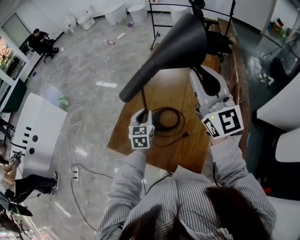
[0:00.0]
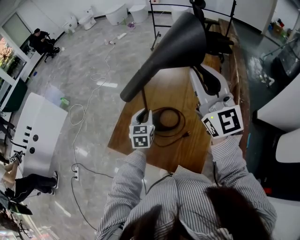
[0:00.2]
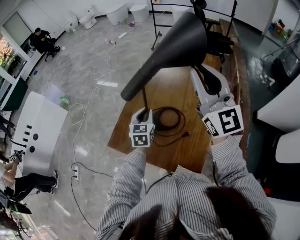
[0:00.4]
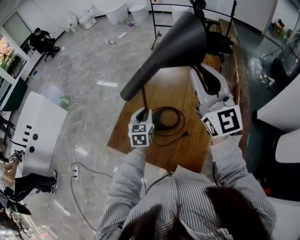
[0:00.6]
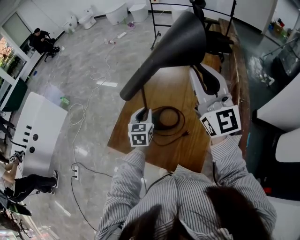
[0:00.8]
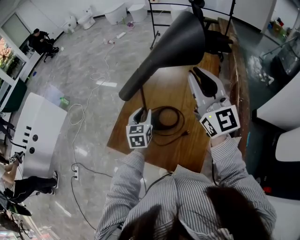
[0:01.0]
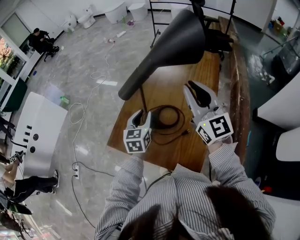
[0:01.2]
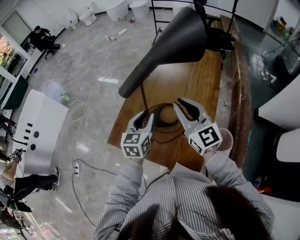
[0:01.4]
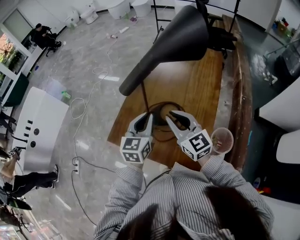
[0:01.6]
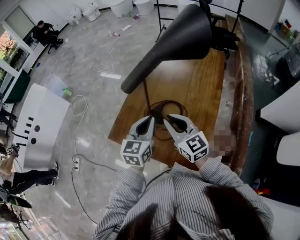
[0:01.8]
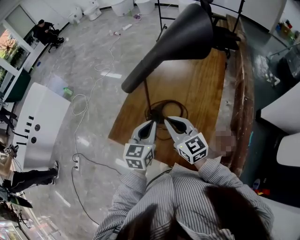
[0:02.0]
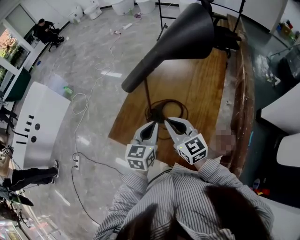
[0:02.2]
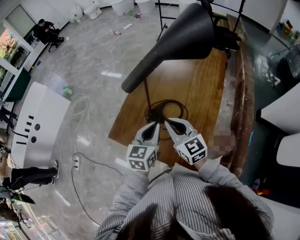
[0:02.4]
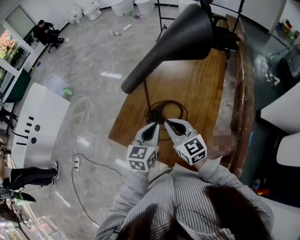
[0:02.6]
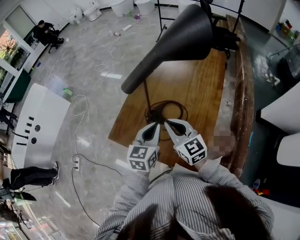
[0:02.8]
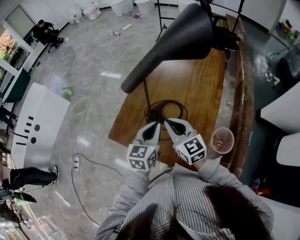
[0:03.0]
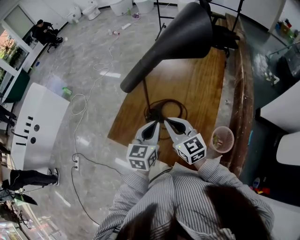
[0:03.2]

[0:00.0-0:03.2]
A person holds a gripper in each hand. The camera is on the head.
0:00.0 to 0:01.6: The left gripper shifts roughly 10 cm backward and upward. The right gripper travels downward and to the left by approximately 25 cm, and swivels roughly 30 degrees.
0:01.6 to 0:03.2: The grippers stay close to where they were, moving slightly.

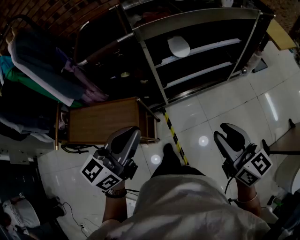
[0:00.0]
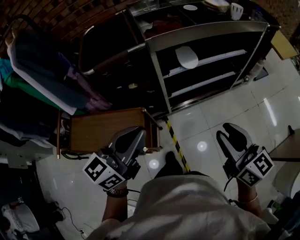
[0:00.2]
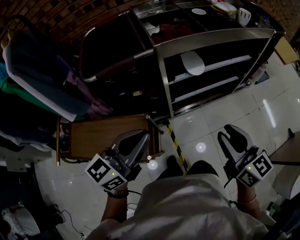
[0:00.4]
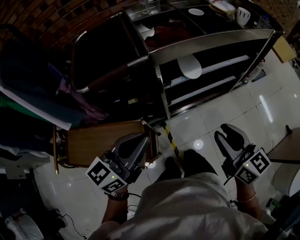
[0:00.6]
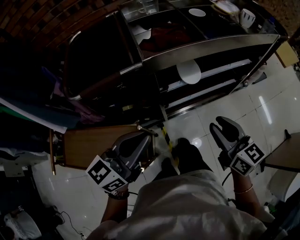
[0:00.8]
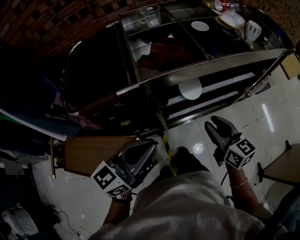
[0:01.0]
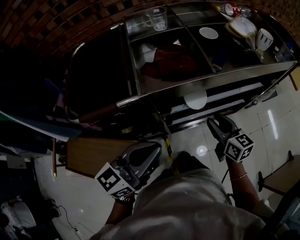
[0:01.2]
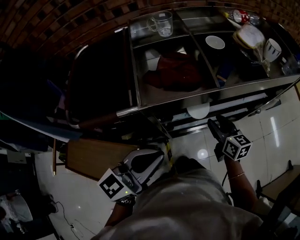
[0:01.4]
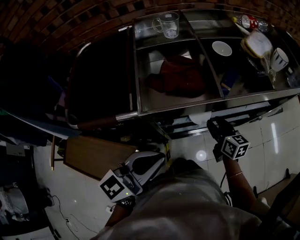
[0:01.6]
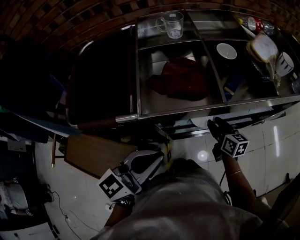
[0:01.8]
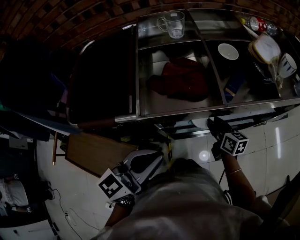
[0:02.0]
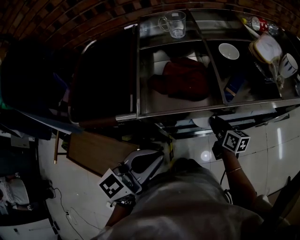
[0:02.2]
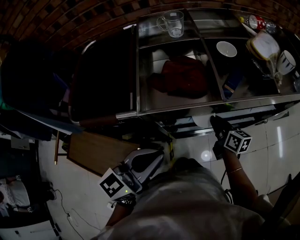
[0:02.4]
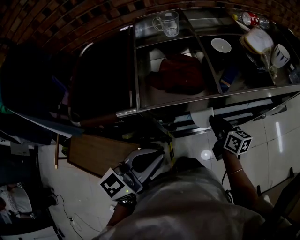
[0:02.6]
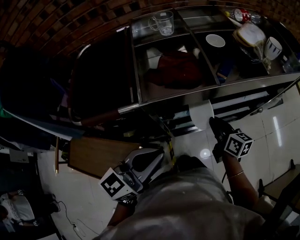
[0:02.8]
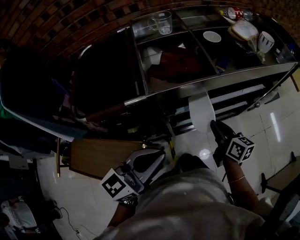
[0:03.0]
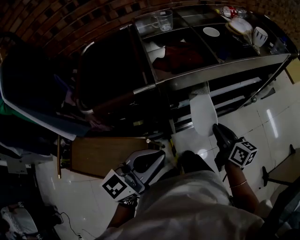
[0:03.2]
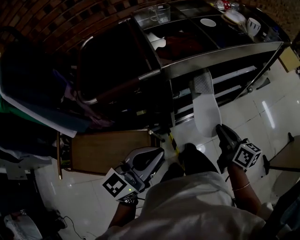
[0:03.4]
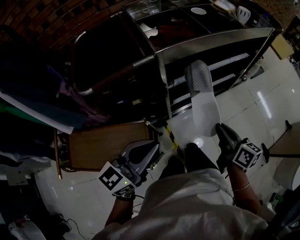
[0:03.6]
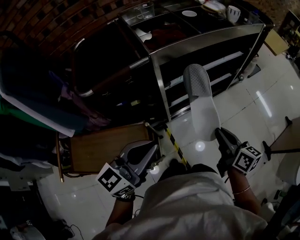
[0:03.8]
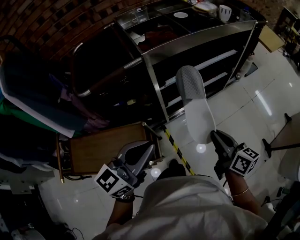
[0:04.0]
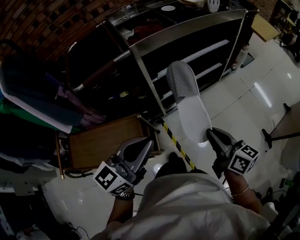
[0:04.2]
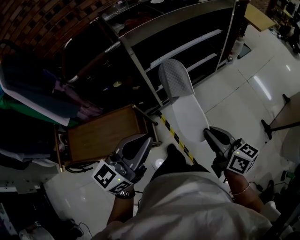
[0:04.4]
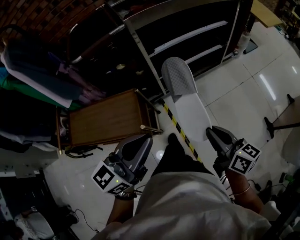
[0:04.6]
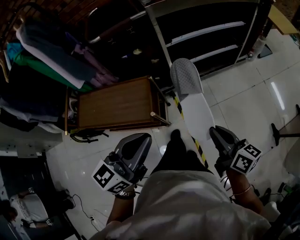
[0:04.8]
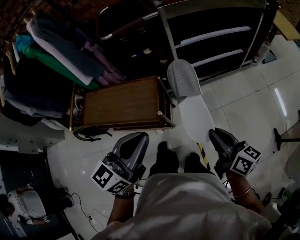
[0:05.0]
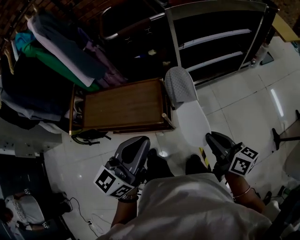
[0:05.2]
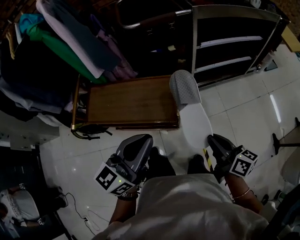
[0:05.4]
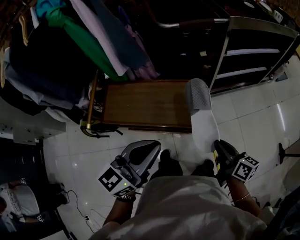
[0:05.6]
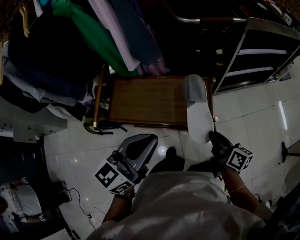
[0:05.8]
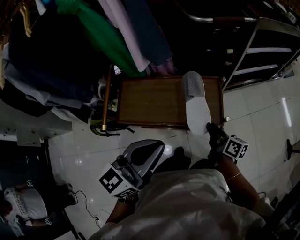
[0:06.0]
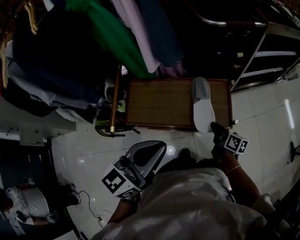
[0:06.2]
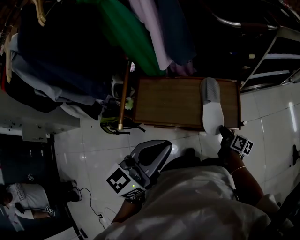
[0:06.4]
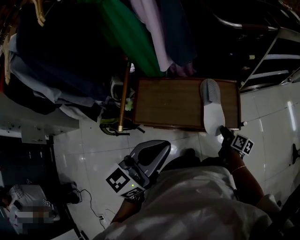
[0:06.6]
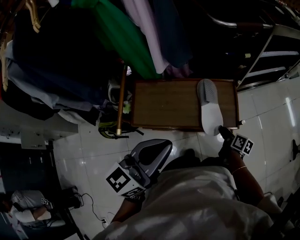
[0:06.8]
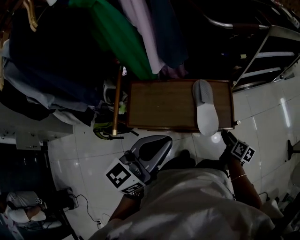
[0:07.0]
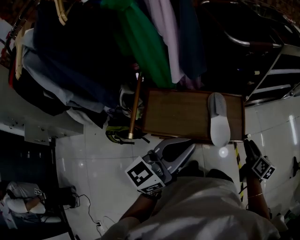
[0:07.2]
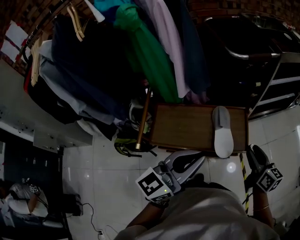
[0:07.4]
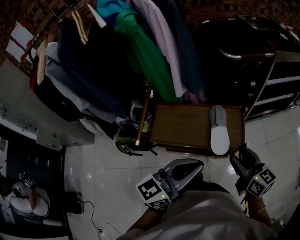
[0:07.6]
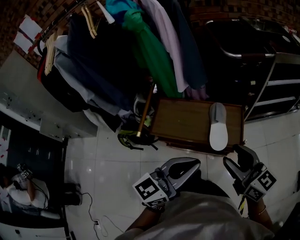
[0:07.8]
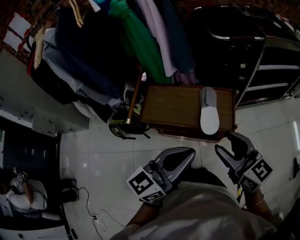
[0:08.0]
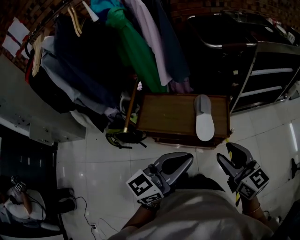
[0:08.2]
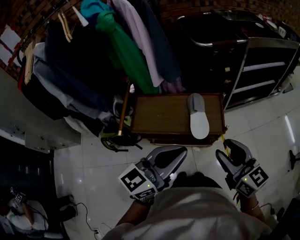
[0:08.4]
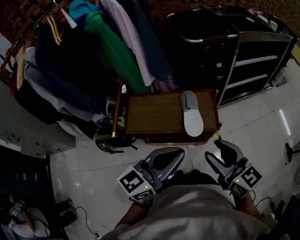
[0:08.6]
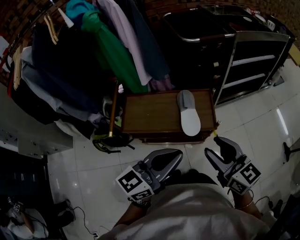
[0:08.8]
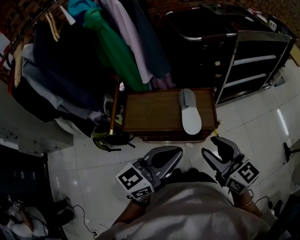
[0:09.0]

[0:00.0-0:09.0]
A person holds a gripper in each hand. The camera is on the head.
0:00.0 to 0:01.6: The left gripper goes approximately 25 cm forward; the right gripper goes approximately 50 cm forward and downward.
0:01.6 to 0:03.0: The left gripper moves backward, some 5 cm. The right gripper shifts roughly 10 cm backward and upward, and closes its fingers.
0:03.0 to 0:04.4: The left gripper travels backward by approximately 20 cm. Meanwhile the right gripper travels backward by roughly 35 cm.
0:04.4 to 0:06.0: The pair of grippers is taken to the left, roughly 40 cm. The right gripper shifts approximately 15 cm downward, and turns by roughly 20 degrees.
0:06.0 to 0:07.6: The right gripper heads upward, covering some 20 cm, swivels roughly 30 degrees, and opens its fingers, while the left gripper moves some 10 cm to the left and comes back.
0:07.6 to 0:09.0: The left gripper ends up roughly 5 cm from where it was. The right gripper goes approximately 10 cm backward and upward.

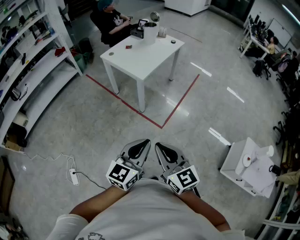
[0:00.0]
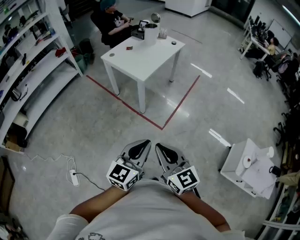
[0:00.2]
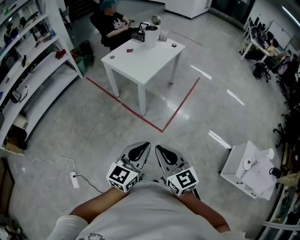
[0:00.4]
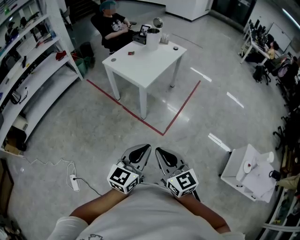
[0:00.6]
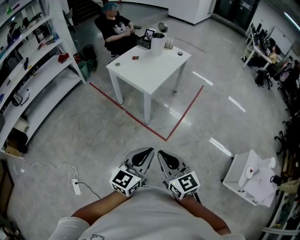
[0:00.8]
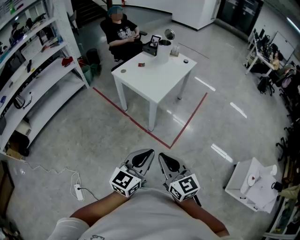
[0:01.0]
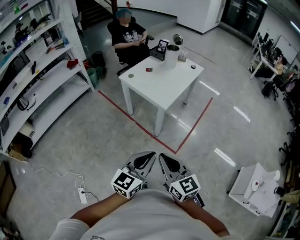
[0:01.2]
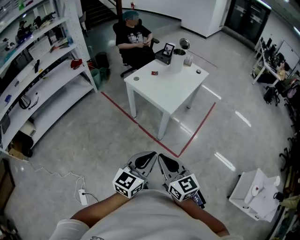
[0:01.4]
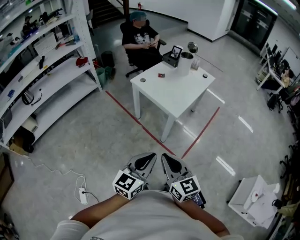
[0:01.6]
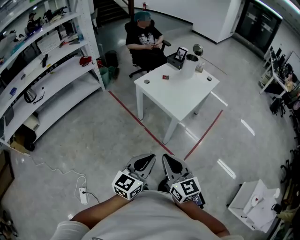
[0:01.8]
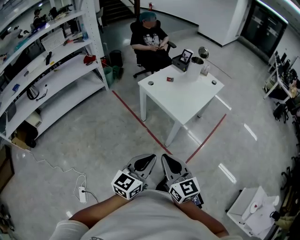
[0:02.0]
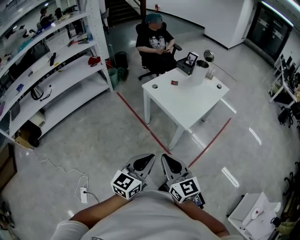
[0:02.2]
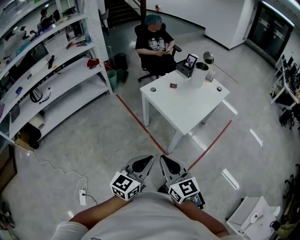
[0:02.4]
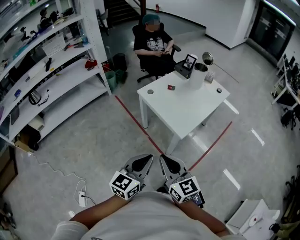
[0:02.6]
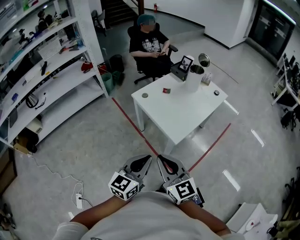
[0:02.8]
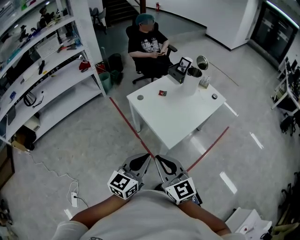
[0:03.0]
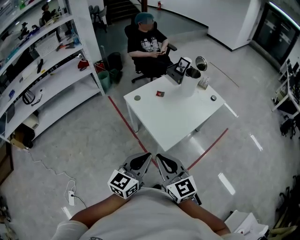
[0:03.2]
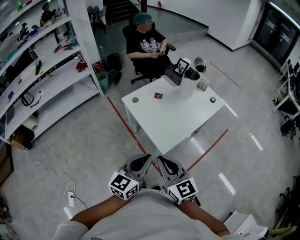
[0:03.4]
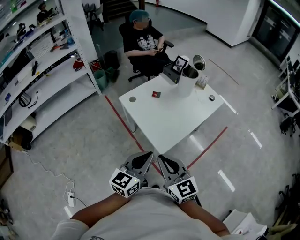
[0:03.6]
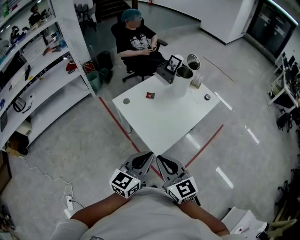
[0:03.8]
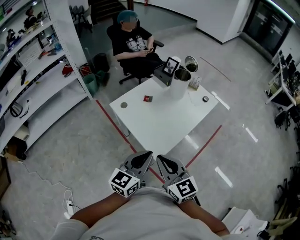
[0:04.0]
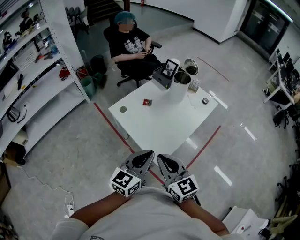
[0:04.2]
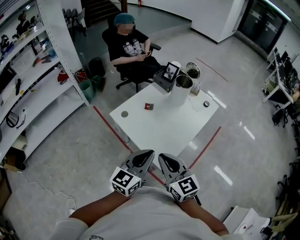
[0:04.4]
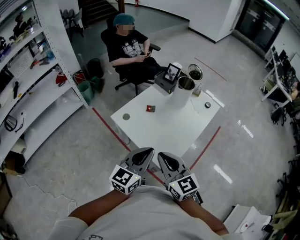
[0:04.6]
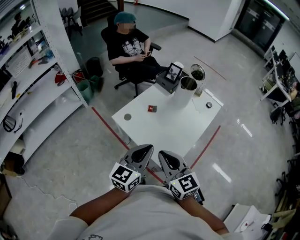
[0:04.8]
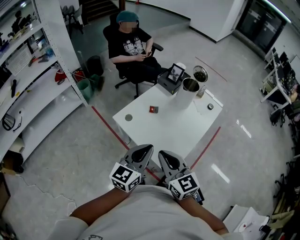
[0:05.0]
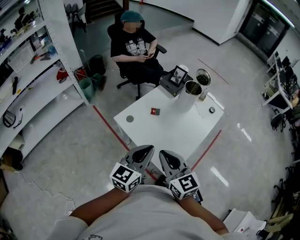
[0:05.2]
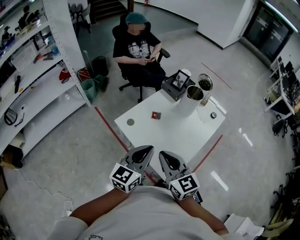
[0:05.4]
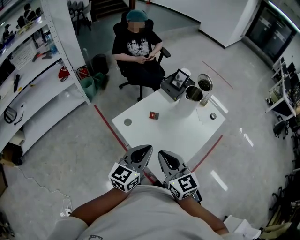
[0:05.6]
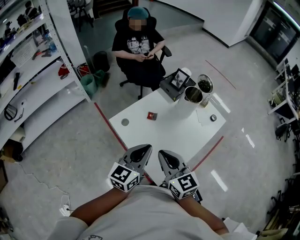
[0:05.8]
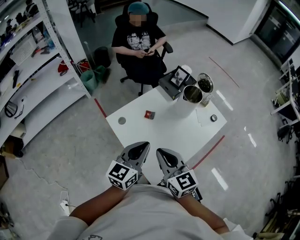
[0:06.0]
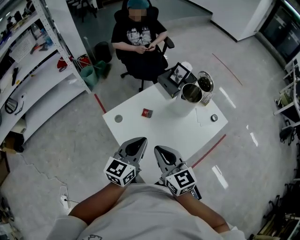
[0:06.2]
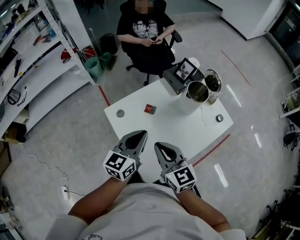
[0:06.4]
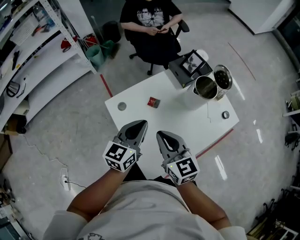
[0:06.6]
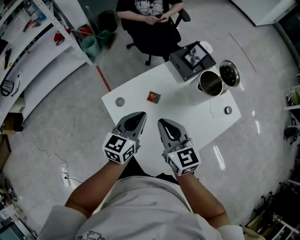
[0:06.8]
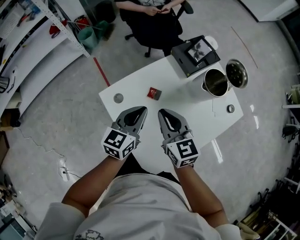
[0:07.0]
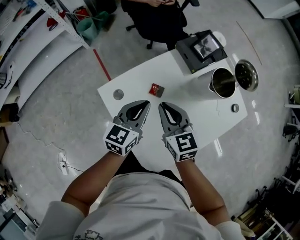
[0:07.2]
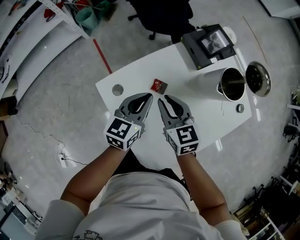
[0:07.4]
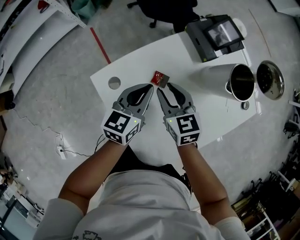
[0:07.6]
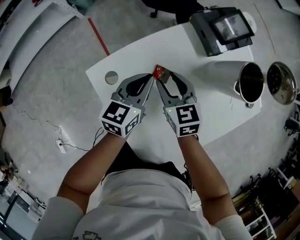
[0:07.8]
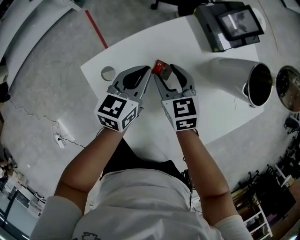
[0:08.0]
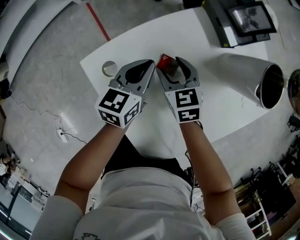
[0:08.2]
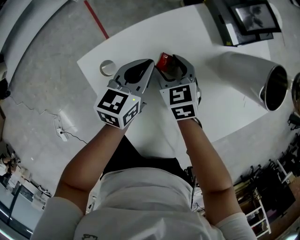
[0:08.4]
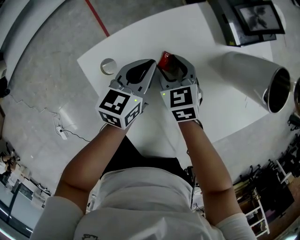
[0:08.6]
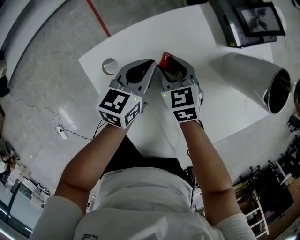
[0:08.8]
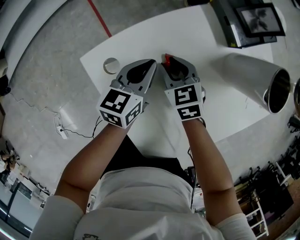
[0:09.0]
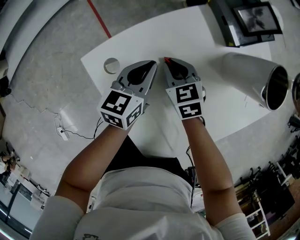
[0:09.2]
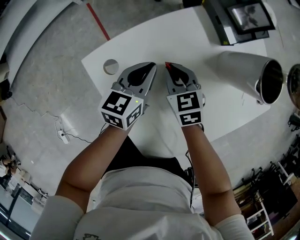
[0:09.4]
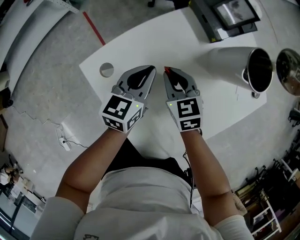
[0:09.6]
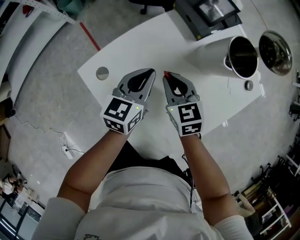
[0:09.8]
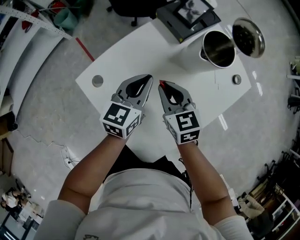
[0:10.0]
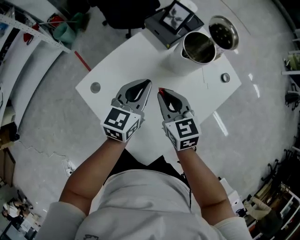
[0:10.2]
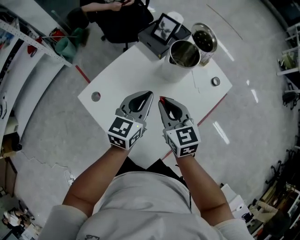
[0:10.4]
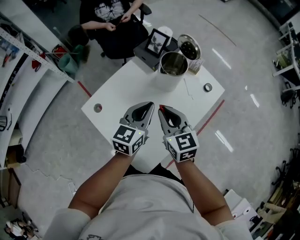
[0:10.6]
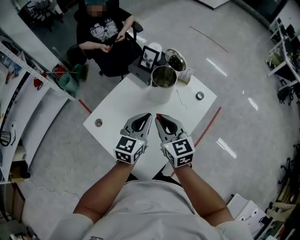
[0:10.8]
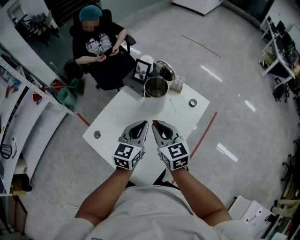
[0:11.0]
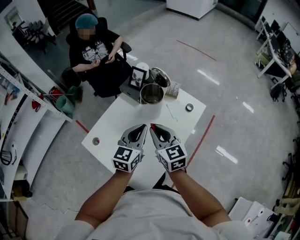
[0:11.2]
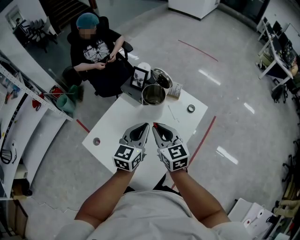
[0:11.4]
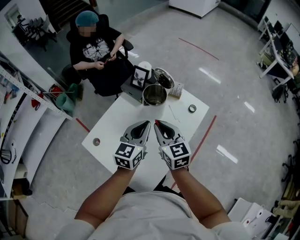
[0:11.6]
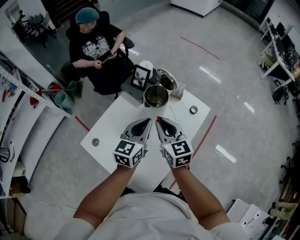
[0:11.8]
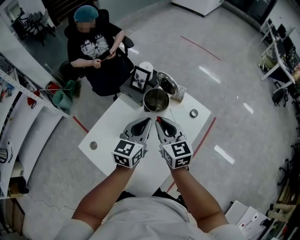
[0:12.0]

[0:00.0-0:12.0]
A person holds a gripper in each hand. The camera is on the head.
0:00.0 to 0:01.6: The two grippers go about 25 cm to the left and forward.
0:01.6 to 0:03.0: Both grippers move forward, roughly 25 cm.
0:03.0 to 0:04.4: The two grippers go approximately 20 cm forward.
0:04.4 to 0:06.0: Both grippers move forward, some 15 cm.
0:06.0 to 0:07.6: The grippers both shift forward and downward by about 30 cm. The right gripper rotates some 20 degrees, and opens its fingers.
0:07.6 to 0:09.0: Both grippers move downward, roughly 10 cm. The right gripper opens and closes again.
0:09.0 to 0:10.4: The two grippers go some 30 cm upward, to the right and backward. The left gripper turns by approximately 20 degrees, while the right gripper turns by roughly 30 degrees, and closes its fingers.
0:10.4 to 0:12.0: The two grippers go some 15 cm forward, upward and to the right.
